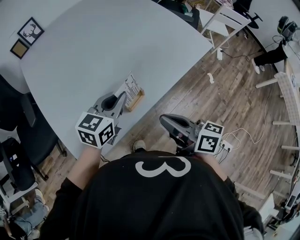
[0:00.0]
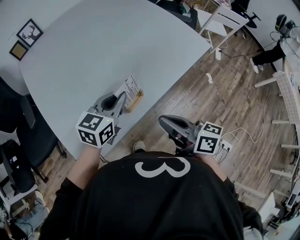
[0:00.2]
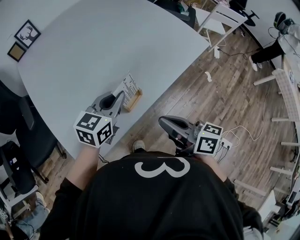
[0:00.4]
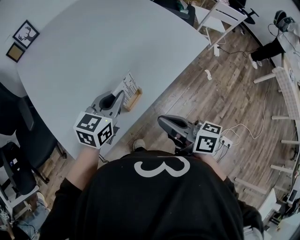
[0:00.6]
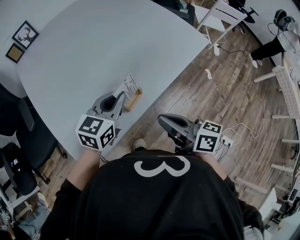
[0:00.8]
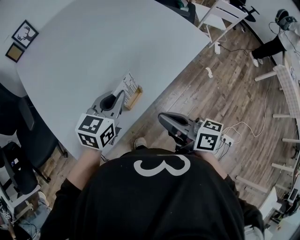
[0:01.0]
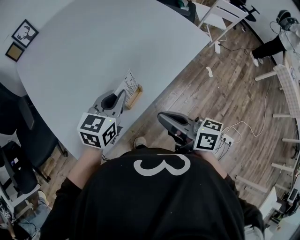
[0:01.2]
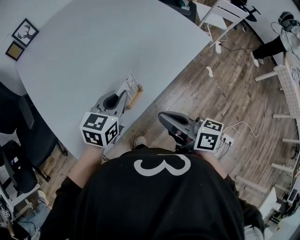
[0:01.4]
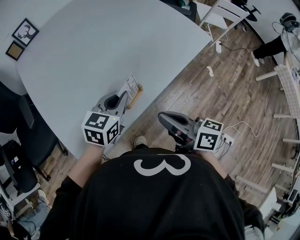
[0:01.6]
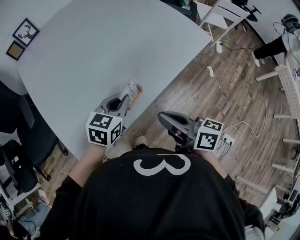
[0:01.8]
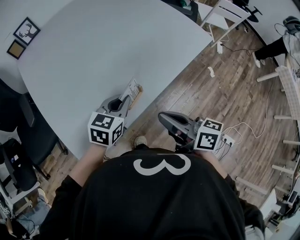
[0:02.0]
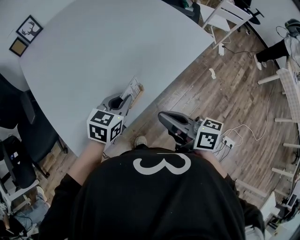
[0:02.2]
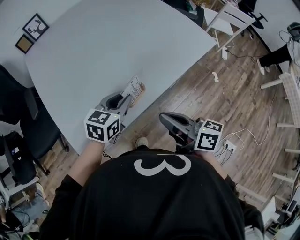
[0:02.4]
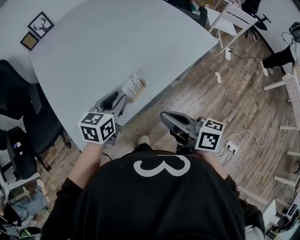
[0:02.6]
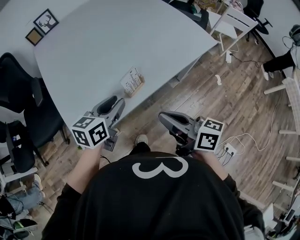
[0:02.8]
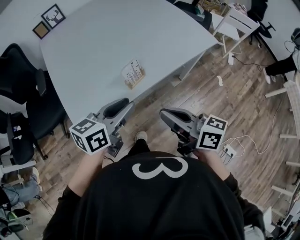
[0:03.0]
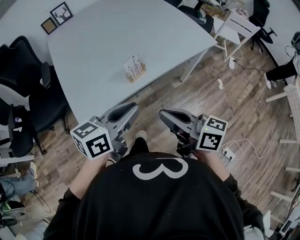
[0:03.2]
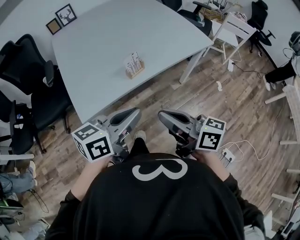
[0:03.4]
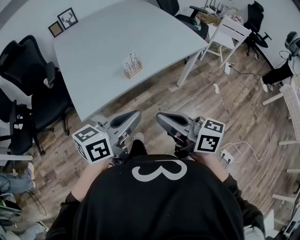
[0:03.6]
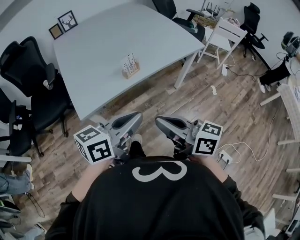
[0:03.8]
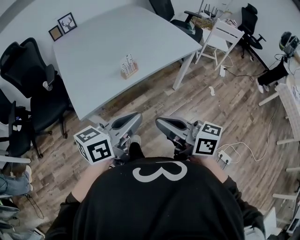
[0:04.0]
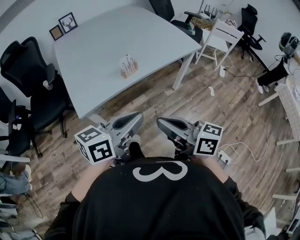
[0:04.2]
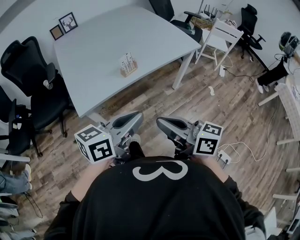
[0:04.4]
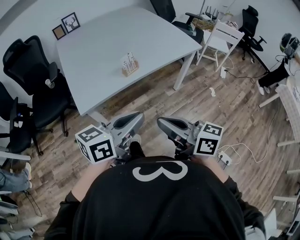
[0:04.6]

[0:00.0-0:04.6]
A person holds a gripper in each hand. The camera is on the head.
0:00.0 to 0:01.6: The grippers stay close to where they were, moving slightly.
0:01.6 to 0:03.0: The left gripper is displaced backward and upward by some 15 cm, rotates about 20 degrees, and opens its fingers. The right gripper moves backward, some 10 cm.
0:03.0 to 0:04.6: The grippers both shift backward by approximately 20 cm. The left gripper closes its fingers.

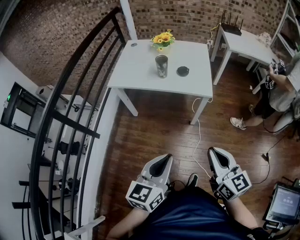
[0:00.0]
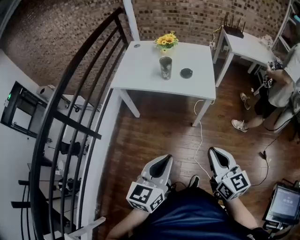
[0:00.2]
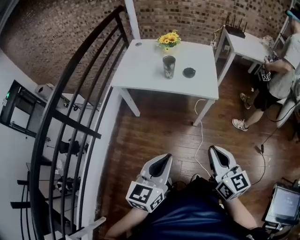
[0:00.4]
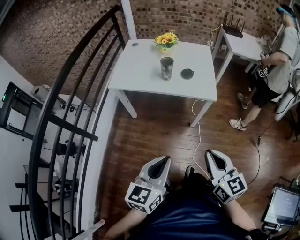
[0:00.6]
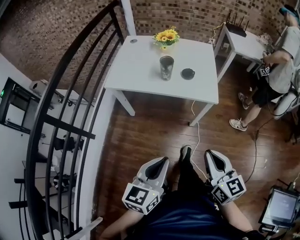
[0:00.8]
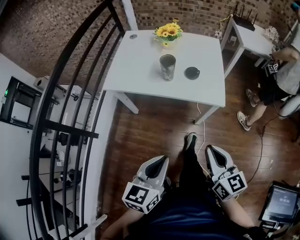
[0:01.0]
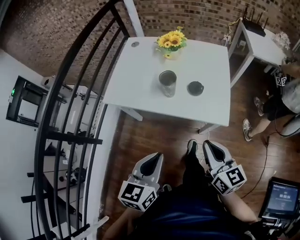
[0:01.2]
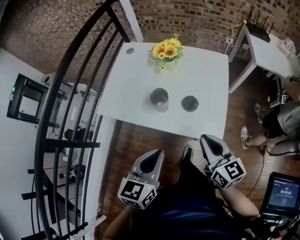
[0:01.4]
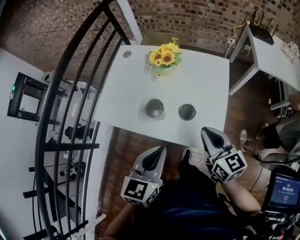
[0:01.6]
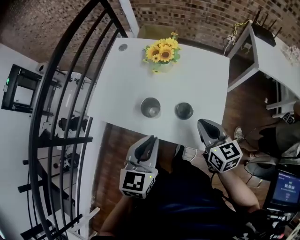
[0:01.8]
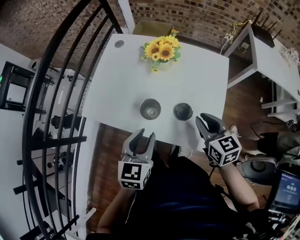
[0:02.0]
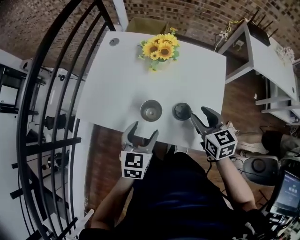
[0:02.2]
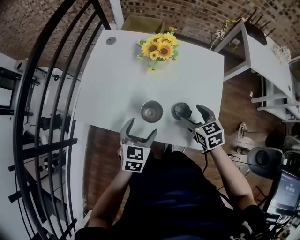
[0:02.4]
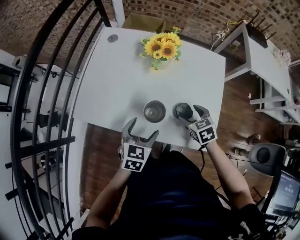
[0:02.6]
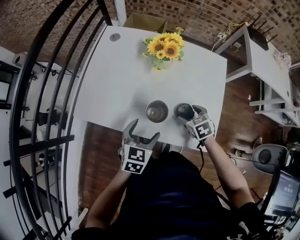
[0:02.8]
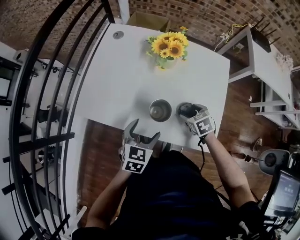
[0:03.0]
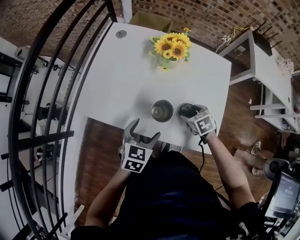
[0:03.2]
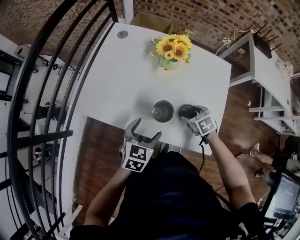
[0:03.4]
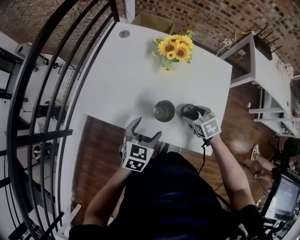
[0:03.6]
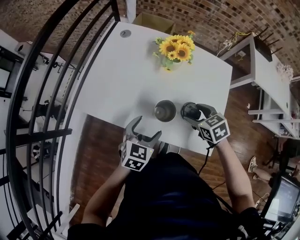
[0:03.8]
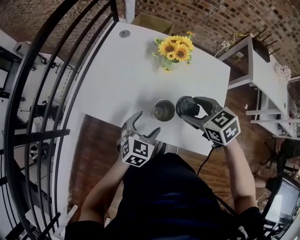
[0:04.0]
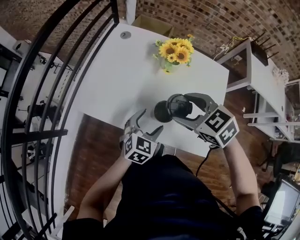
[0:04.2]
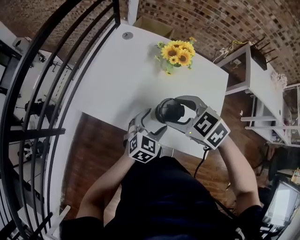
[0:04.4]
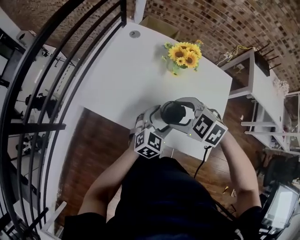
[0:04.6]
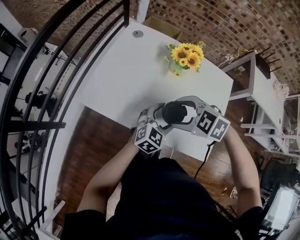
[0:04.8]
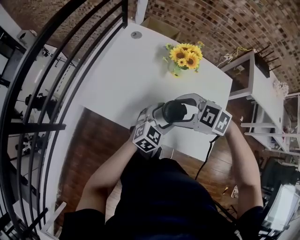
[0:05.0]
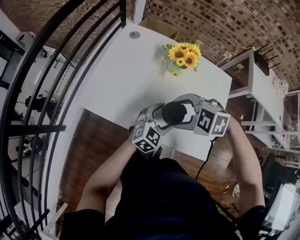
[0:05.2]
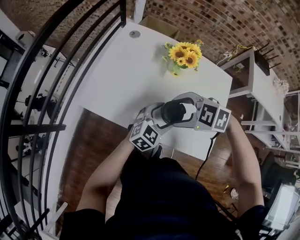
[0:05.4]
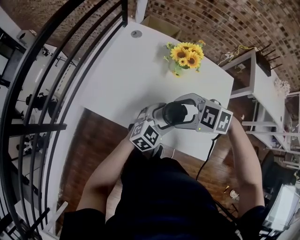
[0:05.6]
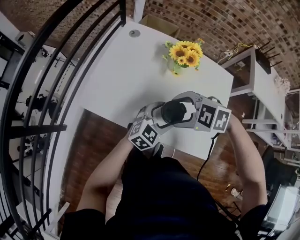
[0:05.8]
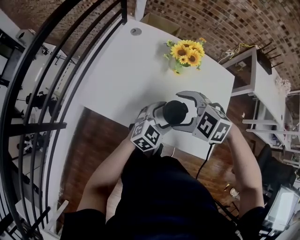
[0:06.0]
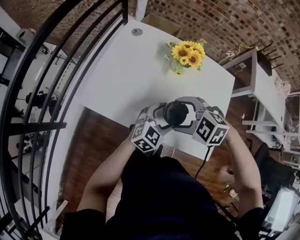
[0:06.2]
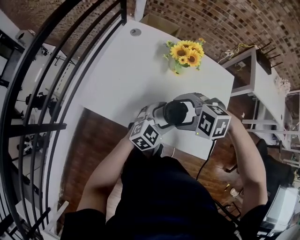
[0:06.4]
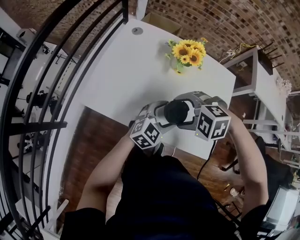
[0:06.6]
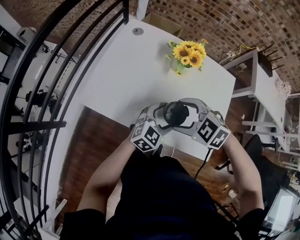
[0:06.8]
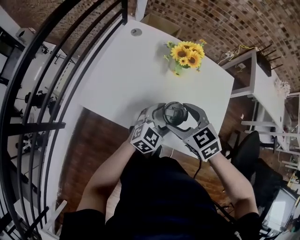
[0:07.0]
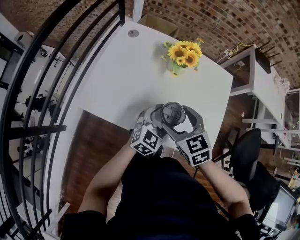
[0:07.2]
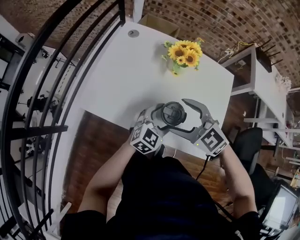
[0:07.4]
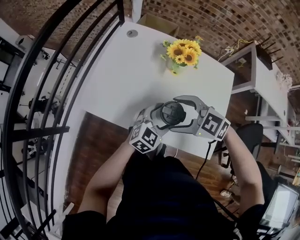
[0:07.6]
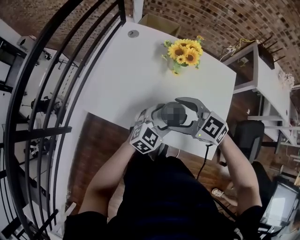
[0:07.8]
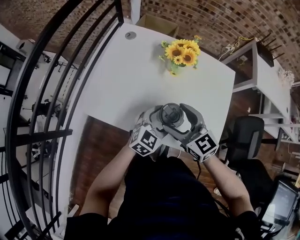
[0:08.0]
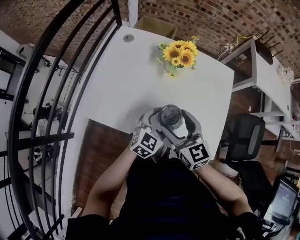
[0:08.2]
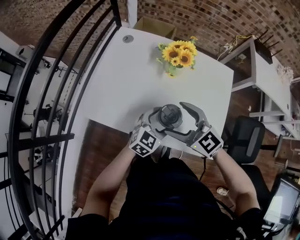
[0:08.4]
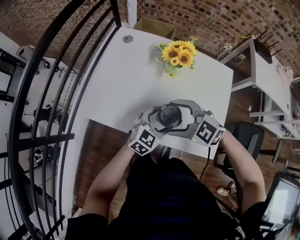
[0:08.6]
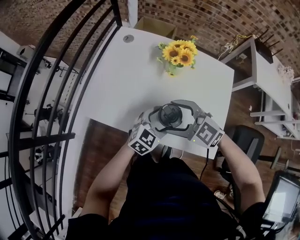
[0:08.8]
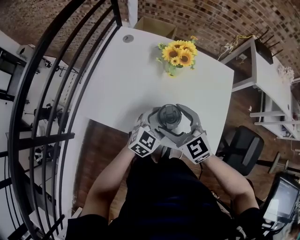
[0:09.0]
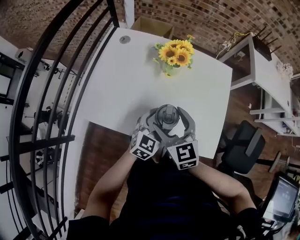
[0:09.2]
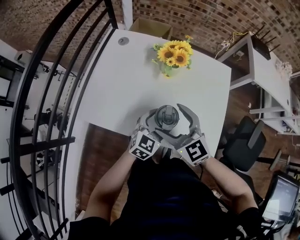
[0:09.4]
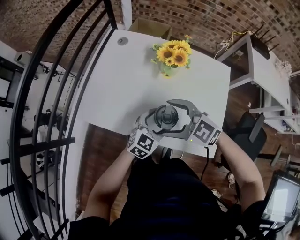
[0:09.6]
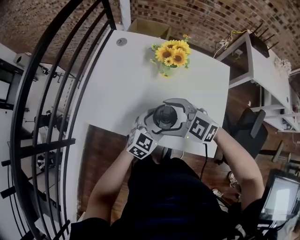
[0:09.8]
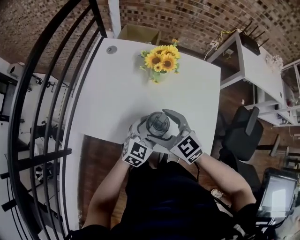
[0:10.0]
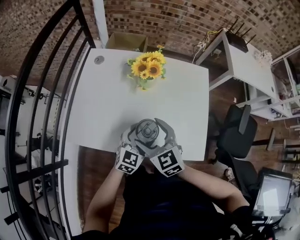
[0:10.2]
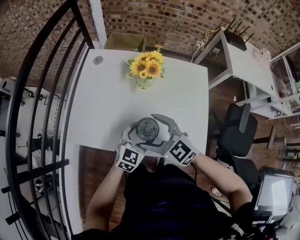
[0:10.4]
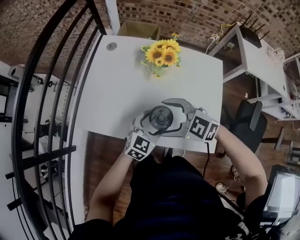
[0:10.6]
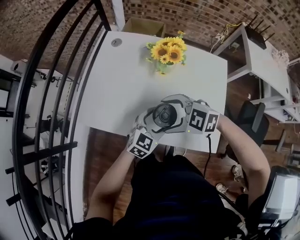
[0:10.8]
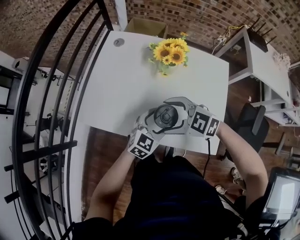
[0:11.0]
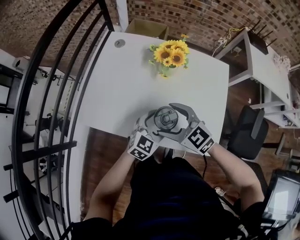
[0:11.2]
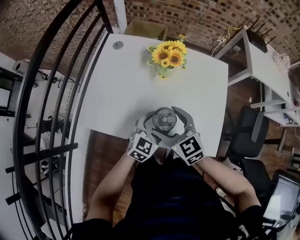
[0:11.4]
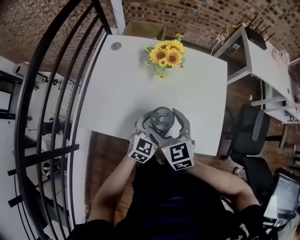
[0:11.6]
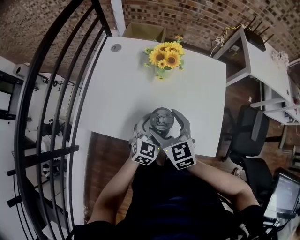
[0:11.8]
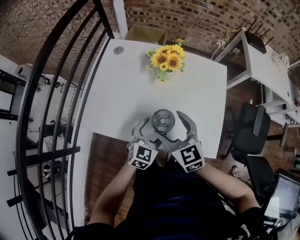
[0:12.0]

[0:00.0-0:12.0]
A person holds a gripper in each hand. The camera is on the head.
0:00.0 to 0:01.6: The two grippers travel together, forward, some 40 cm.
0:01.6 to 0:03.0: The left gripper goes approximately 25 cm downward, forward and to the left, and opens up. Meanwhile the right gripper goes roughly 25 cm downward and forward, points its fingers some 50 degrees further downward, and opens up.
0:03.0 to 0:04.4: The right gripper heads upward and to the left, covering approximately 25 cm, and changes its angle by some 40 degrees.
0:04.4 to 0:06.0: The right gripper changes its angle by some 20 degrees.
0:06.0 to 0:07.6: The right gripper turns by roughly 20 degrees.
0:07.6 to 0:09.0: The right gripper changes its angle by about 30 degrees.
0:10.4 to 0:12.0: The right gripper changes its angle by some 20 degrees.

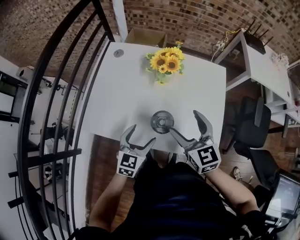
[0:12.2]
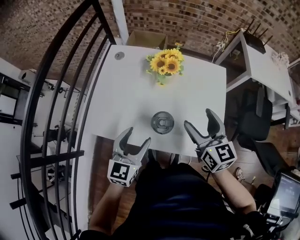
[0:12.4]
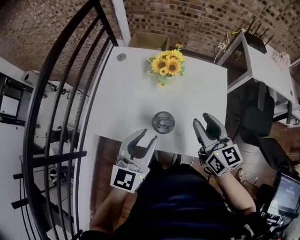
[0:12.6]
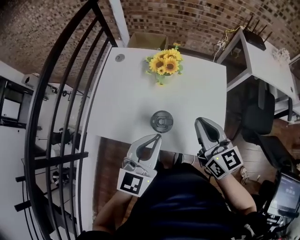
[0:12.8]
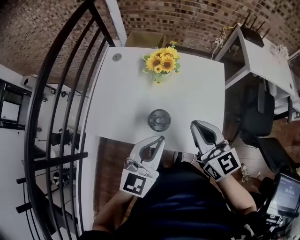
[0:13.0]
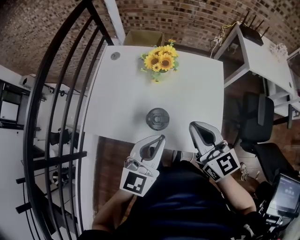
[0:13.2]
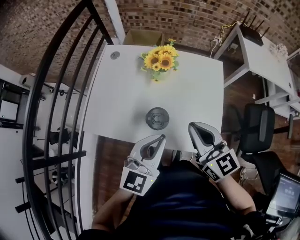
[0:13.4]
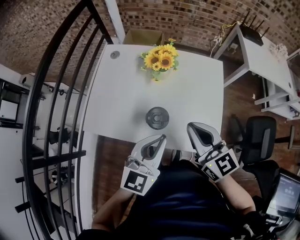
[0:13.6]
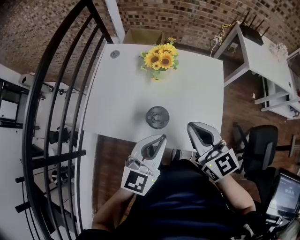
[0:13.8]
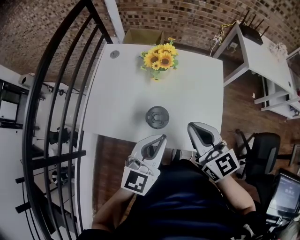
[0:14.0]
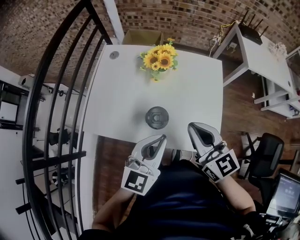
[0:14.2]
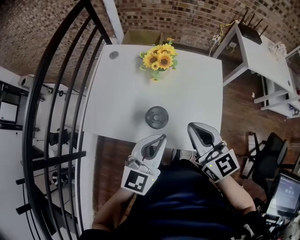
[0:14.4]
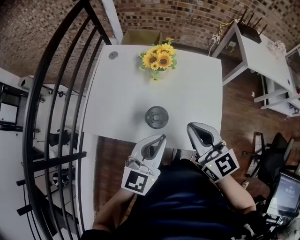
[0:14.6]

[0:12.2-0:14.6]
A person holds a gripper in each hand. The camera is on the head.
0:12.2 to 0:13.4: The right gripper heads upward, covering some 5 cm, and closes its fingers; the left gripper is displaced upward and to the right by about 20 cm, and closes.
0:13.4 to 0:14.6: Both grippers stay put.

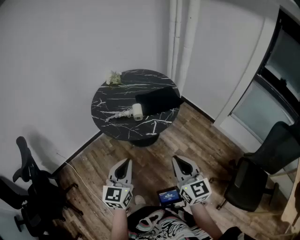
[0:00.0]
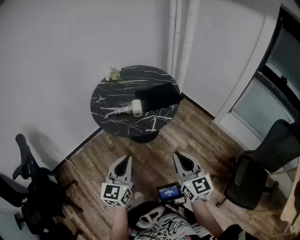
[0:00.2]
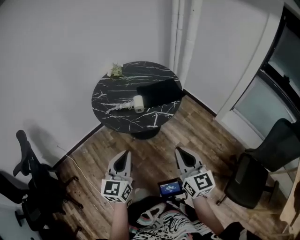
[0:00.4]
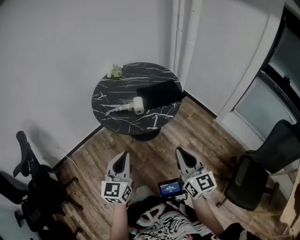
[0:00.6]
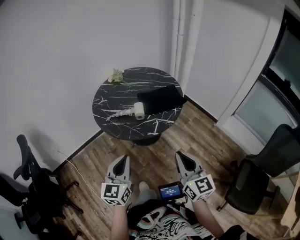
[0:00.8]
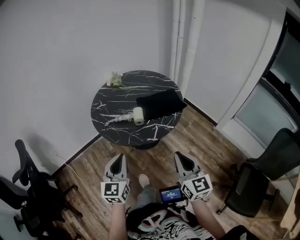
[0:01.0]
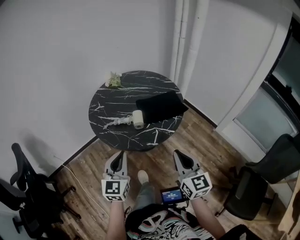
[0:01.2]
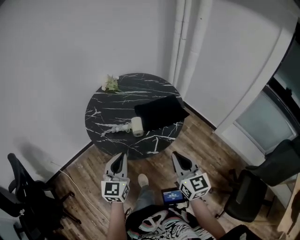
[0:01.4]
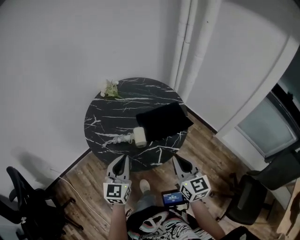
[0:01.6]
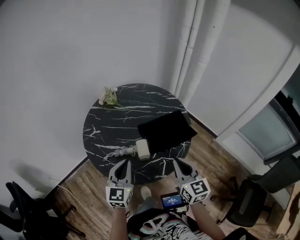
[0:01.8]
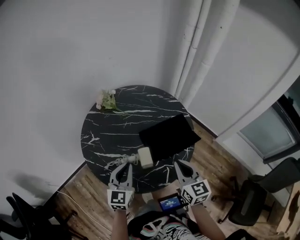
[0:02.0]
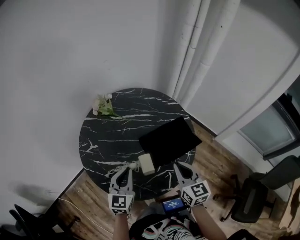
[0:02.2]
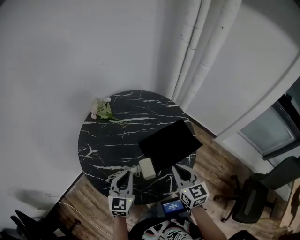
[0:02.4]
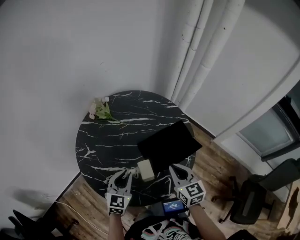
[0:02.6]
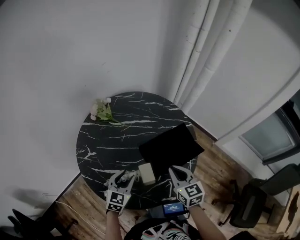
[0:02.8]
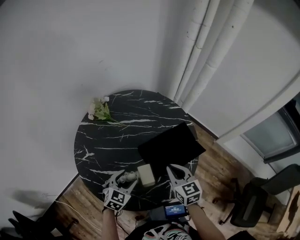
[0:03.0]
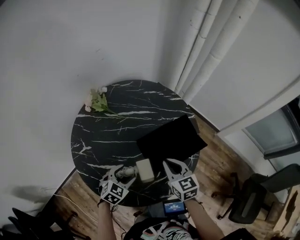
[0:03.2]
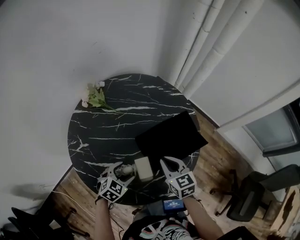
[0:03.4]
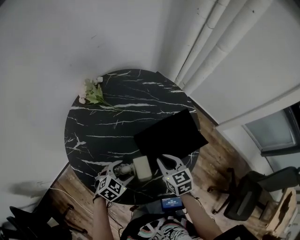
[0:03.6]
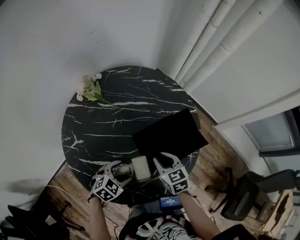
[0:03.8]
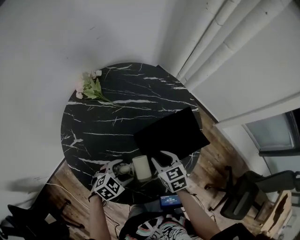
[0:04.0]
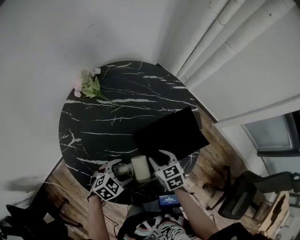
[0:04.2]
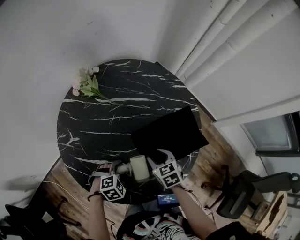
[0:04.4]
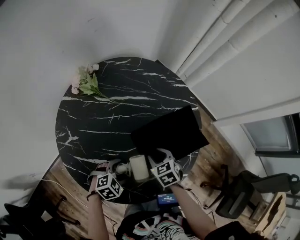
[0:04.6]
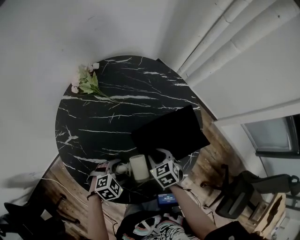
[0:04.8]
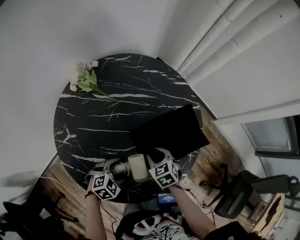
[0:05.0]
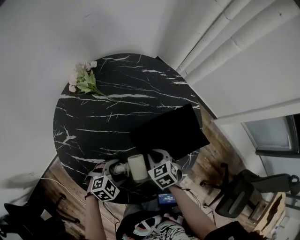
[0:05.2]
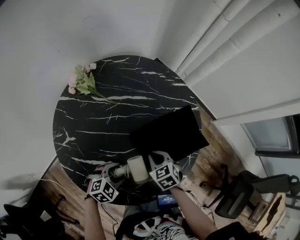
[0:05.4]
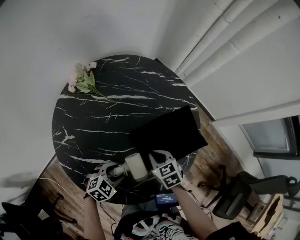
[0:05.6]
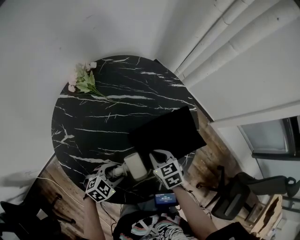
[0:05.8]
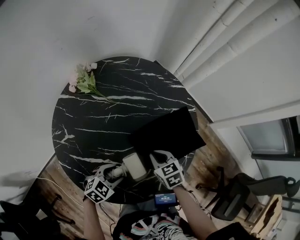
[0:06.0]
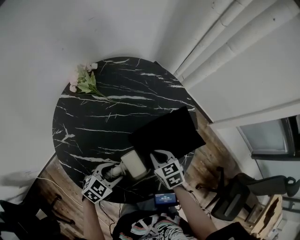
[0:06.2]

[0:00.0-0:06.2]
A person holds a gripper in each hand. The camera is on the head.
0:00.0 to 0:01.6: The grippers both shift forward by some 25 cm.
0:01.6 to 0:03.2: The left gripper shifts some 30 cm downward and forward, angles its fingers downward, by roughly 40 degrees, and opens, while the right gripper is displaced forward and downward by roughly 25 cm.
0:03.2 to 0:04.6: The right gripper is displaced downward by about 15 cm, rotates about 30 degrees, and opens up; the left gripper heads downward, covering about 5 cm, and turns by roughly 20 degrees.
0:04.6 to 0:06.2: The right gripper closes its fingers. Meanwhile the left gripper turns by about 20 degrees, and closes up.
